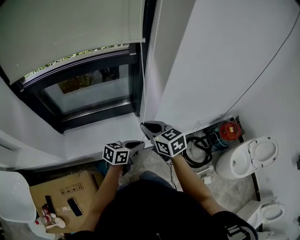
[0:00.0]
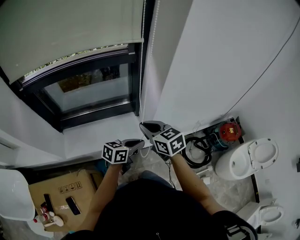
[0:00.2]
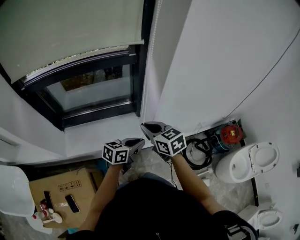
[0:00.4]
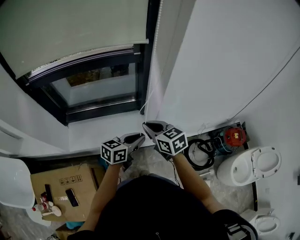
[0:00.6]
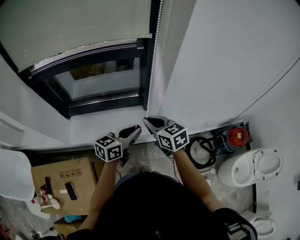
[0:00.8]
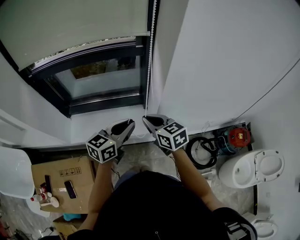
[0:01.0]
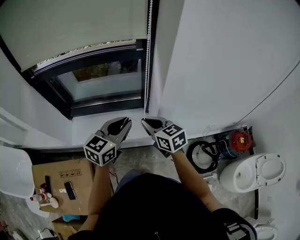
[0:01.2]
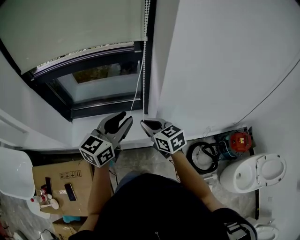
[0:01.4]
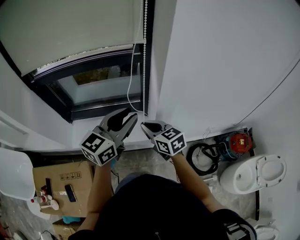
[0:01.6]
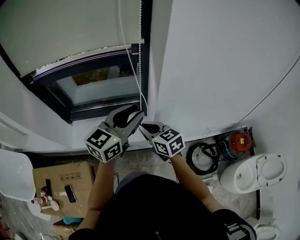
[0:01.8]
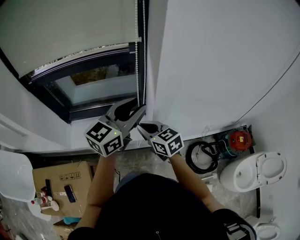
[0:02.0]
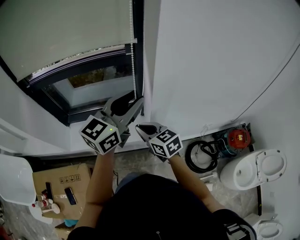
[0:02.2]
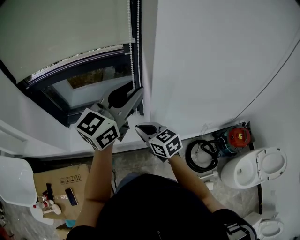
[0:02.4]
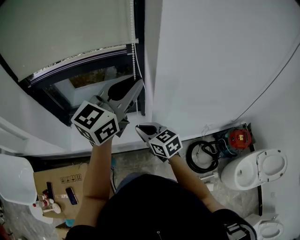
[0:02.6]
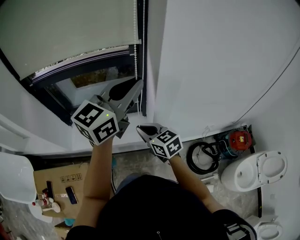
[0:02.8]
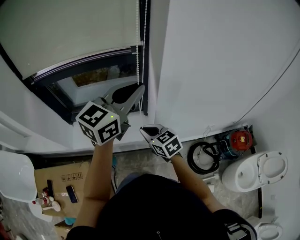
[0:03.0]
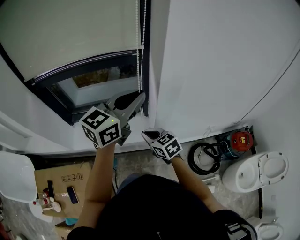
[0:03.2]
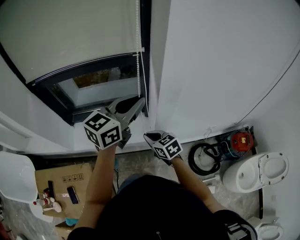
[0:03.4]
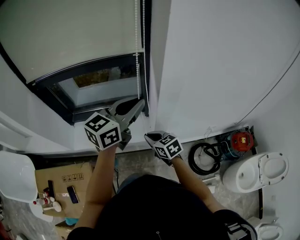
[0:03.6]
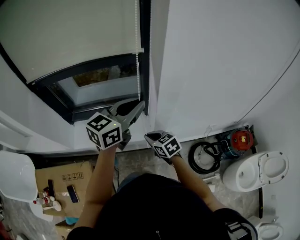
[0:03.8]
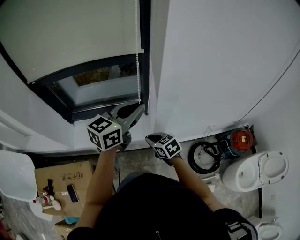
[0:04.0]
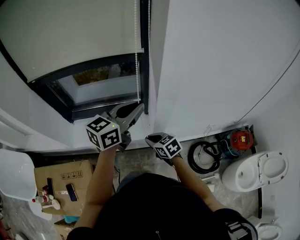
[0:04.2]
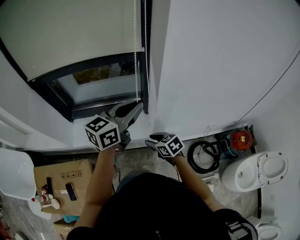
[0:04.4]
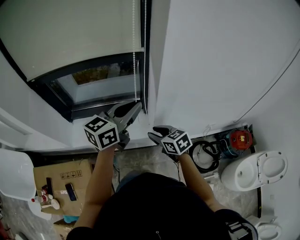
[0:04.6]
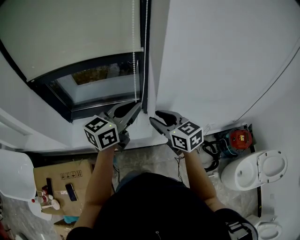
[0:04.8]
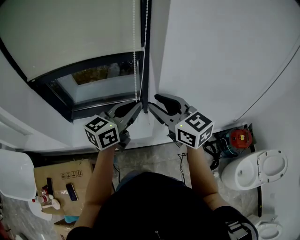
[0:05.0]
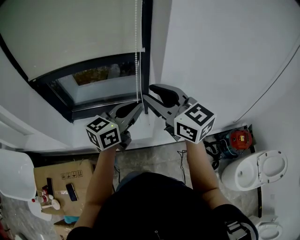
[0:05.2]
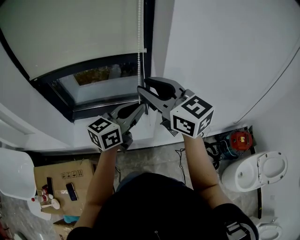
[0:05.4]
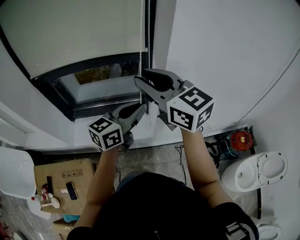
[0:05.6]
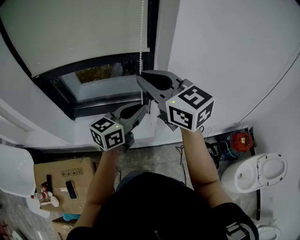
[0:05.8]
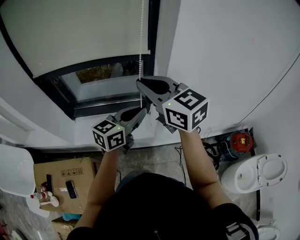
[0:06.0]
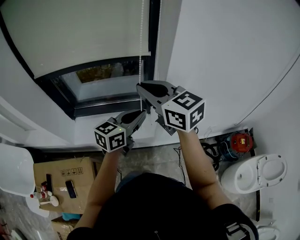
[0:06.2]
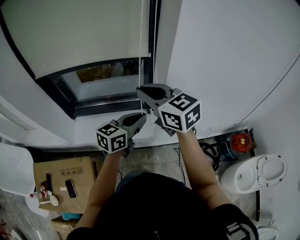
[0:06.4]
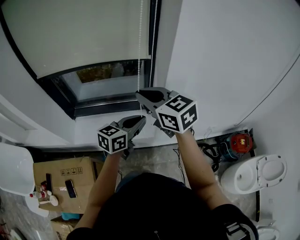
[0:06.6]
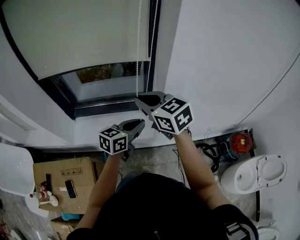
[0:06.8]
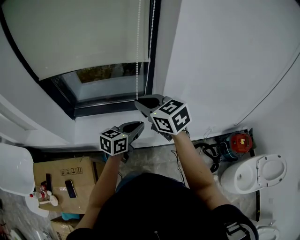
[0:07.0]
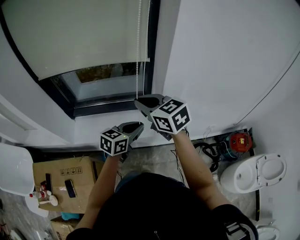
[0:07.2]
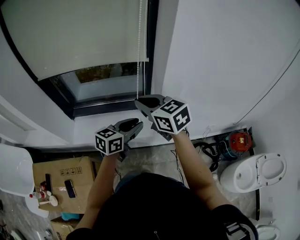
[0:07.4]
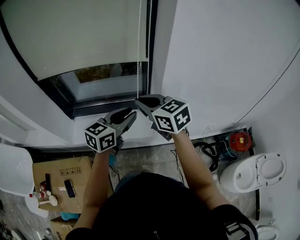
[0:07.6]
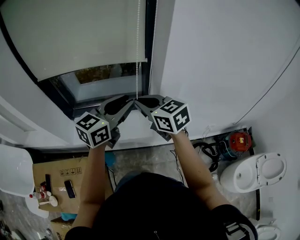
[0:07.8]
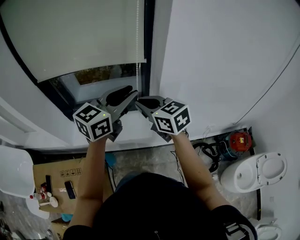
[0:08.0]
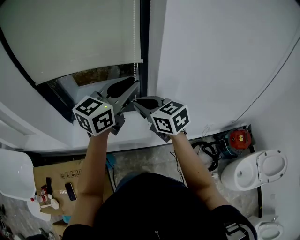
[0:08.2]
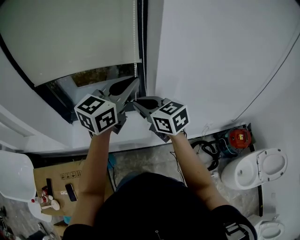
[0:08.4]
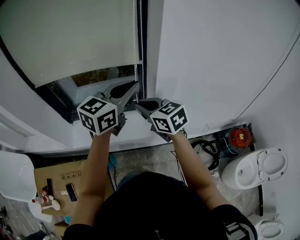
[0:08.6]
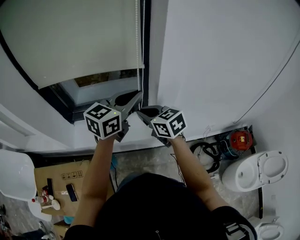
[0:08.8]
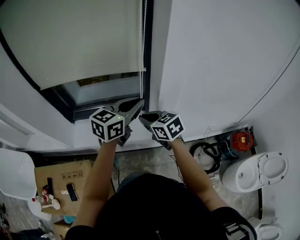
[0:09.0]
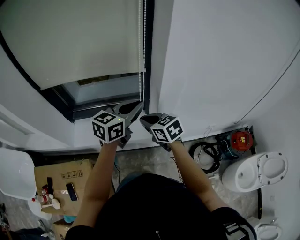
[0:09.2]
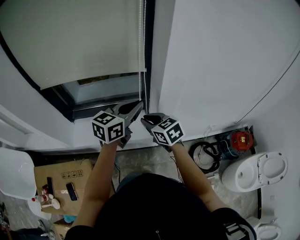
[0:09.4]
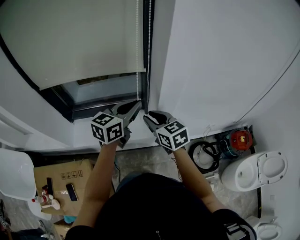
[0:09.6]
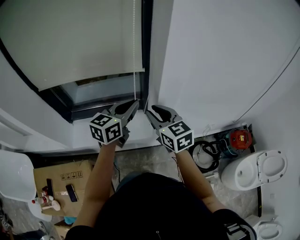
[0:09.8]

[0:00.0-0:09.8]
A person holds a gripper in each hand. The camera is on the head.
0:00.0 to 0:01.4: The left gripper is displaced upward by some 20 cm, rotates some 40 degrees, and opens up.
0:01.4 to 0:02.8: The left gripper shifts roughly 15 cm upward and to the right, and closes up.
0:02.8 to 0:04.2: The grippers both shift downward by about 10 cm.
0:04.2 to 0:05.6: The right gripper moves upward, roughly 35 cm, tilts its fingers some 40 degrees upward, and opens its fingers.
0:05.6 to 0:07.0: The two grippers go about 15 cm downward. The right gripper turns by roughly 20 degrees, and closes its fingers.
0:07.0 to 0:08.4: The left gripper moves upward, about 20 cm, and changes its angle by roughly 30 degrees.
0:08.4 to 0:09.8: The left gripper heads downward, covering roughly 15 cm. Meanwhile the right gripper travels downward and back again, some 10 cm each way.

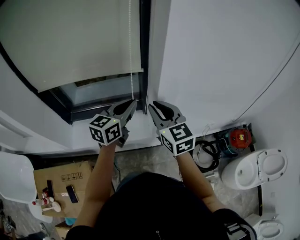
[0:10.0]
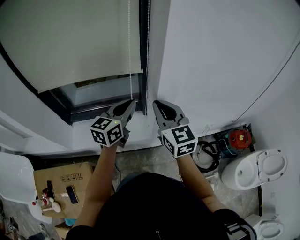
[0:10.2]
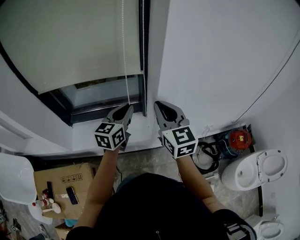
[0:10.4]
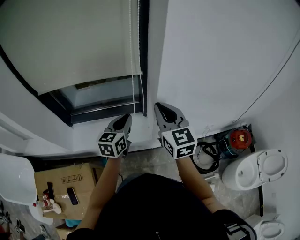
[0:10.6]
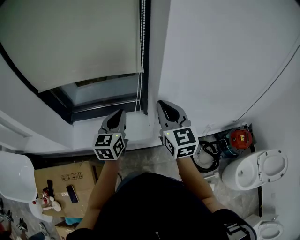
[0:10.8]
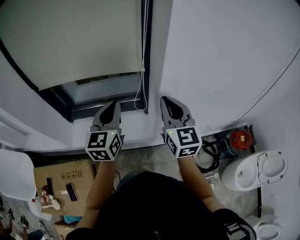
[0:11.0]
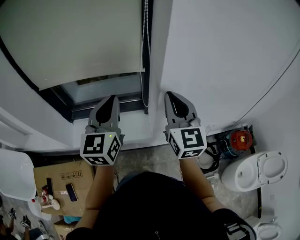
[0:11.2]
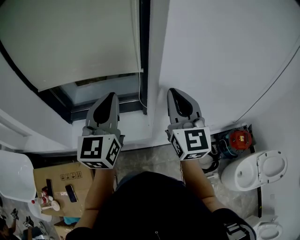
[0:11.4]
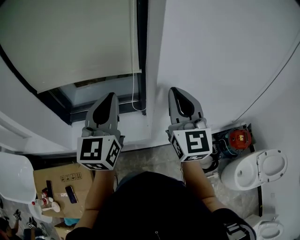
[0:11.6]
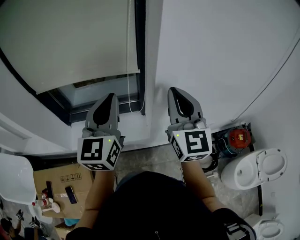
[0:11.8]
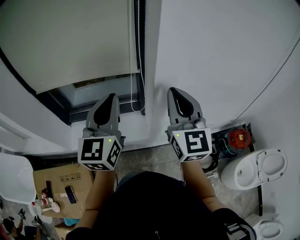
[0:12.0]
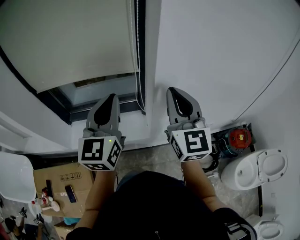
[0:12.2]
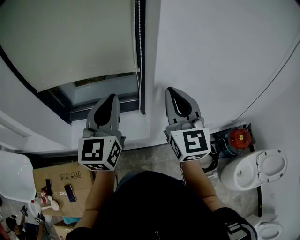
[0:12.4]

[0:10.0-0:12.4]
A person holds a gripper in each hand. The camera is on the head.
0:10.0 to 0:11.2: The right gripper goes about 5 cm upward. Meanwhile the left gripper shifts about 10 cm upward and to the left, and swivels some 30 degrees.
0:11.2 to 0:12.4: The grippers move only a little.

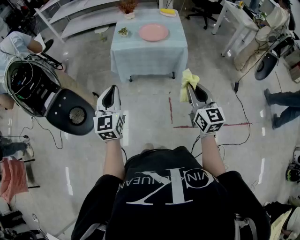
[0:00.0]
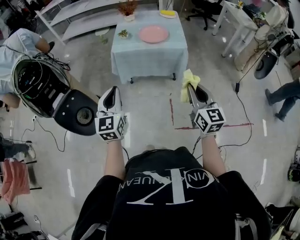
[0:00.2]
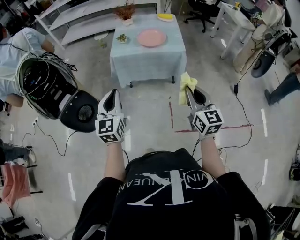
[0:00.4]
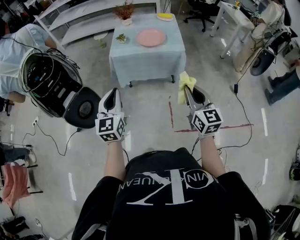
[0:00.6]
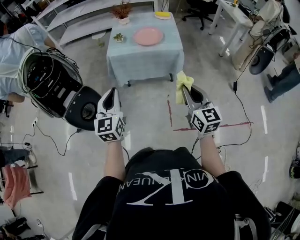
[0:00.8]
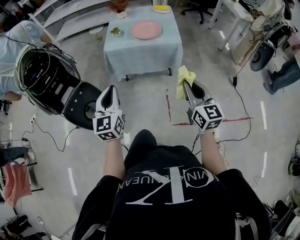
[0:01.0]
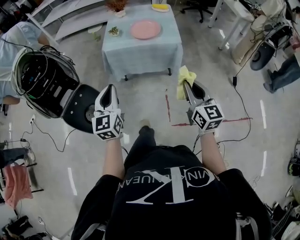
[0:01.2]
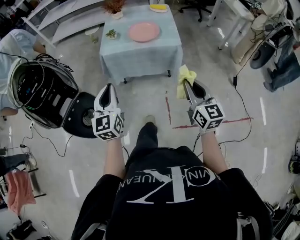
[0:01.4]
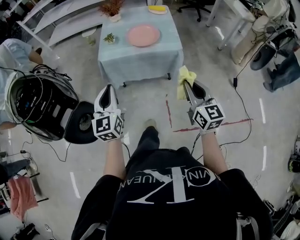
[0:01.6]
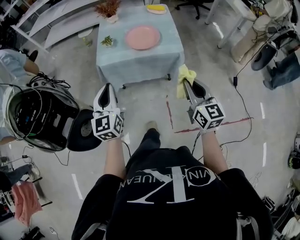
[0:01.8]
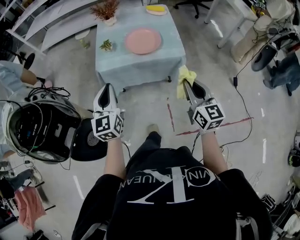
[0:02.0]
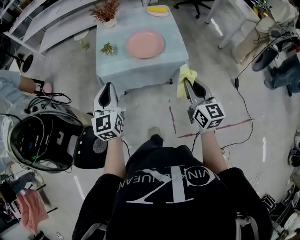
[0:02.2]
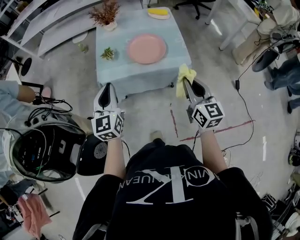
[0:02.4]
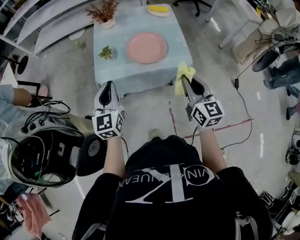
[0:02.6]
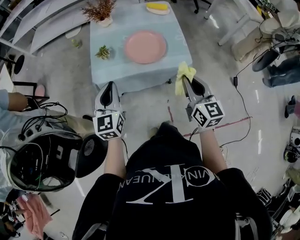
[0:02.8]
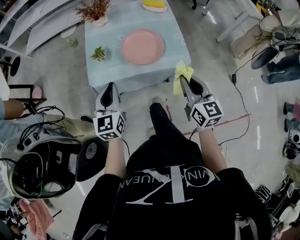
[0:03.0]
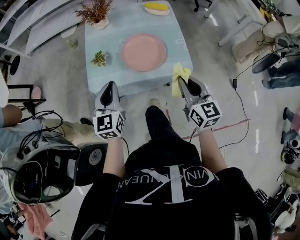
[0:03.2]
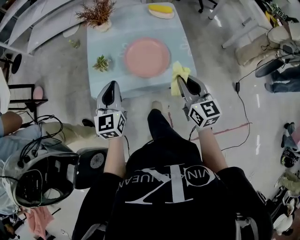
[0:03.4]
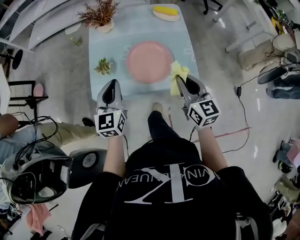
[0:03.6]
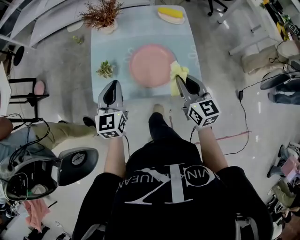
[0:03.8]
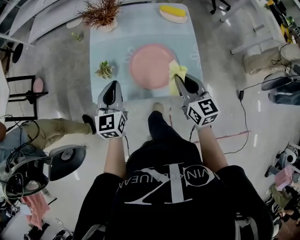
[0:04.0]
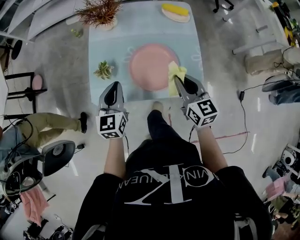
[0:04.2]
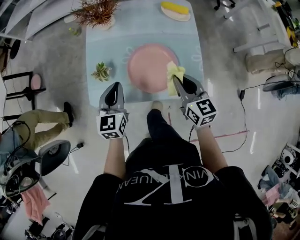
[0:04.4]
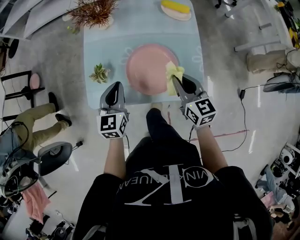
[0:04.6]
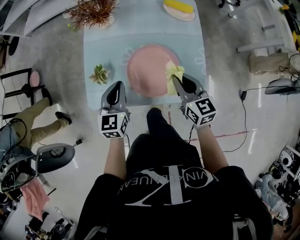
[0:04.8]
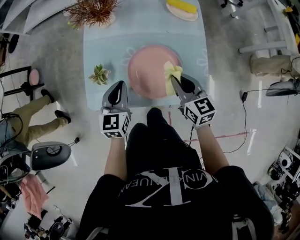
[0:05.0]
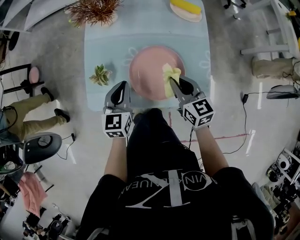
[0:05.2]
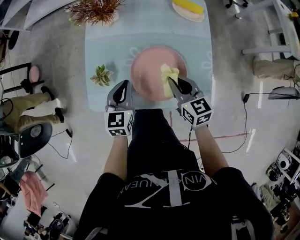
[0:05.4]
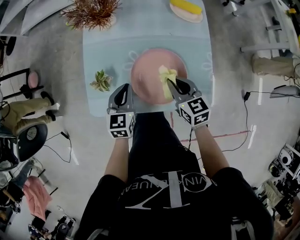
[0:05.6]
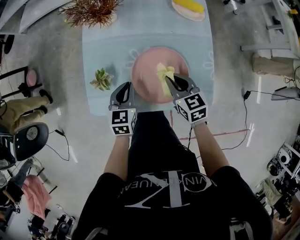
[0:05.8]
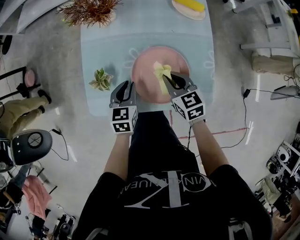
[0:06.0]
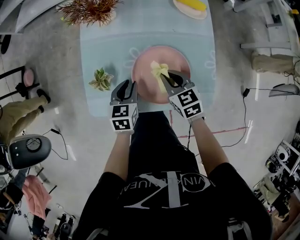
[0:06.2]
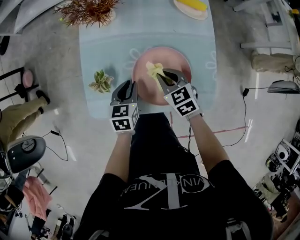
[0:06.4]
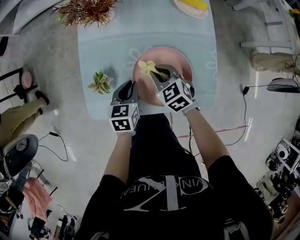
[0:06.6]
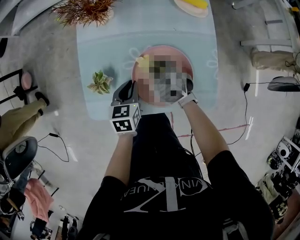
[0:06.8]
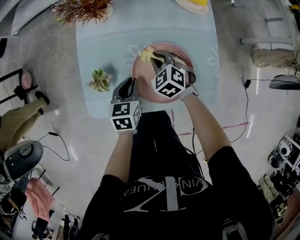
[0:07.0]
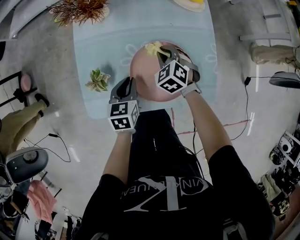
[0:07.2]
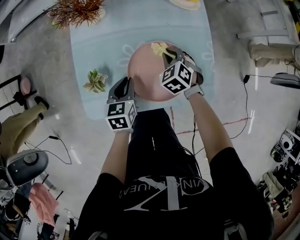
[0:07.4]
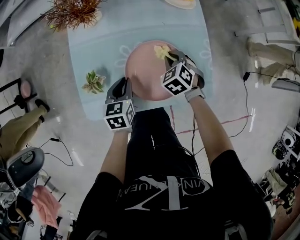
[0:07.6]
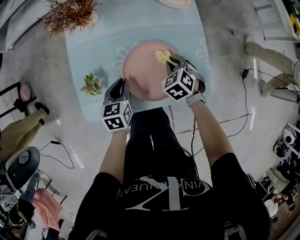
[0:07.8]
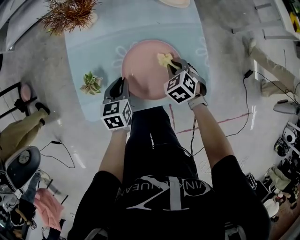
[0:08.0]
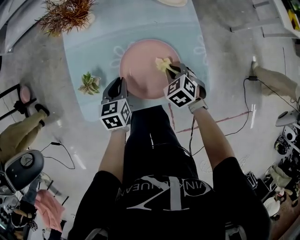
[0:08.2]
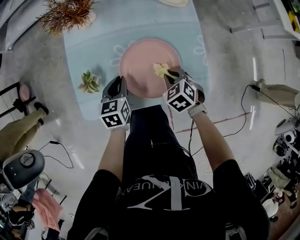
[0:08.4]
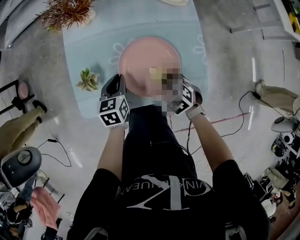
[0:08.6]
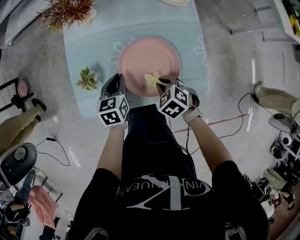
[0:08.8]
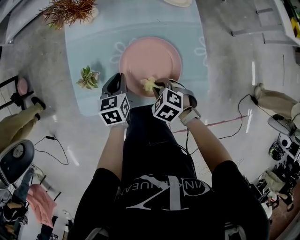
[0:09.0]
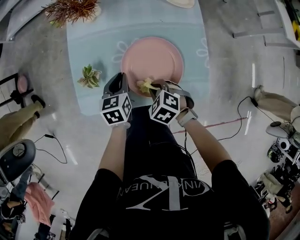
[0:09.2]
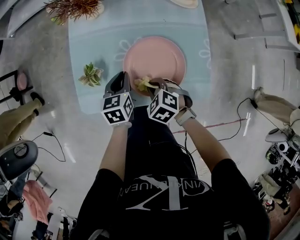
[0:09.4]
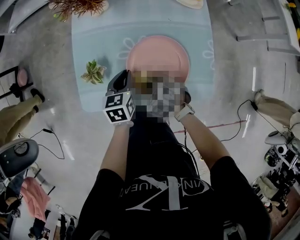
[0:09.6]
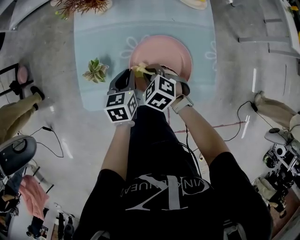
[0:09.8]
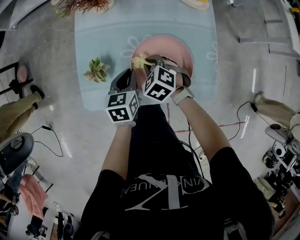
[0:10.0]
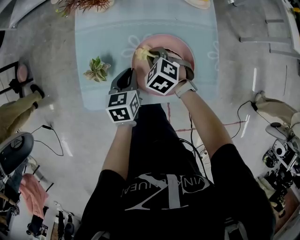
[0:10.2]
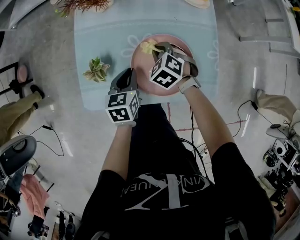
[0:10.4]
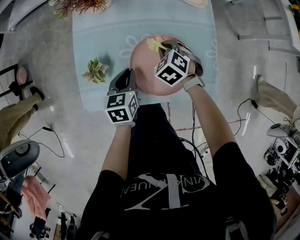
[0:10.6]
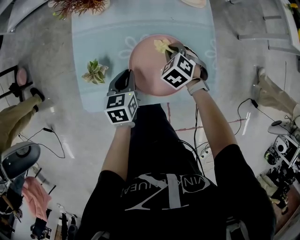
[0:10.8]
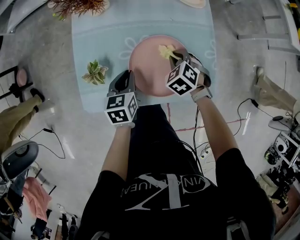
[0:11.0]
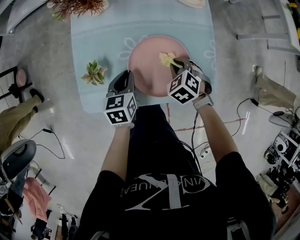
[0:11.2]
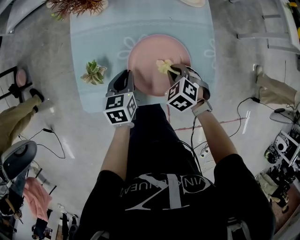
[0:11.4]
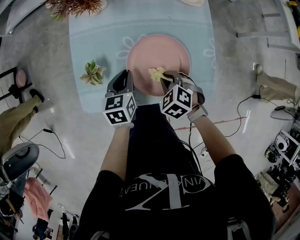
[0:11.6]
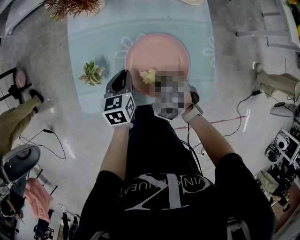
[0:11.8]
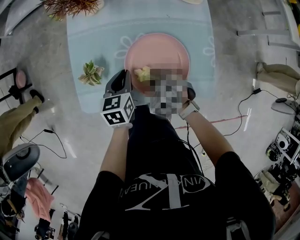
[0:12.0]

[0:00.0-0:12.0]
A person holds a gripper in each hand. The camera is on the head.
0:00.0 to 0:01.6: Both grippers move forward, some 15 cm.
0:01.6 to 0:03.0: The grippers both shift forward by roughly 30 cm.
0:03.0 to 0:04.4: The left gripper goes some 20 cm forward and downward; the right gripper goes some 25 cm forward.
0:04.4 to 0:06.0: The right gripper moves downward, forward and to the left, some 15 cm. The left gripper shifts some 15 cm downward and forward.
0:06.0 to 0:07.6: The right gripper is displaced downward and forward by roughly 10 cm, and swivels approximately 40 degrees.
0:07.6 to 0:09.0: The right gripper heads backward, covering approximately 15 cm, and rotates roughly 20 degrees.
0:09.0 to 0:10.4: The right gripper is displaced forward by roughly 15 cm.
0:10.4 to 0:12.0: The right gripper heads backward, covering about 10 cm.
